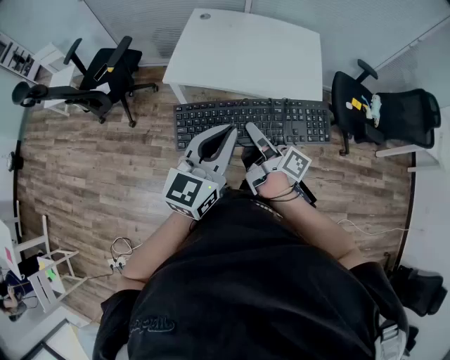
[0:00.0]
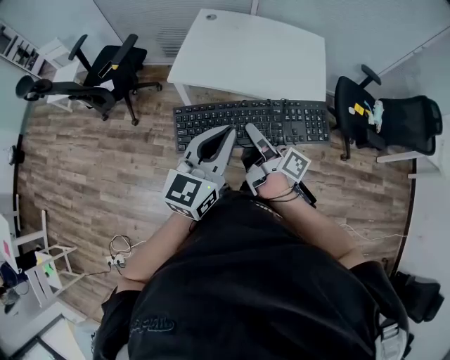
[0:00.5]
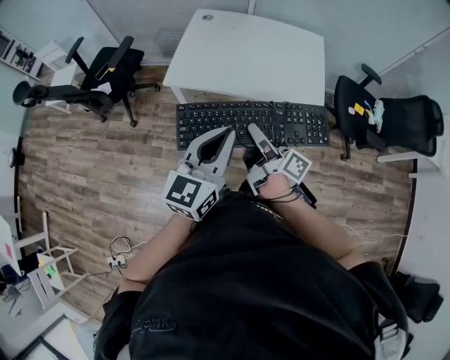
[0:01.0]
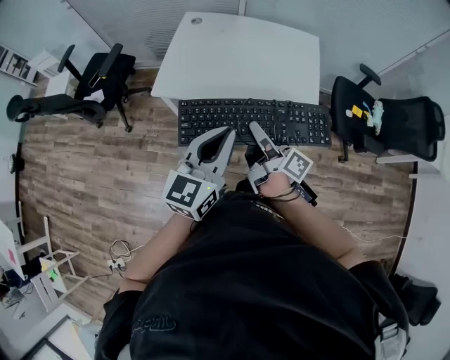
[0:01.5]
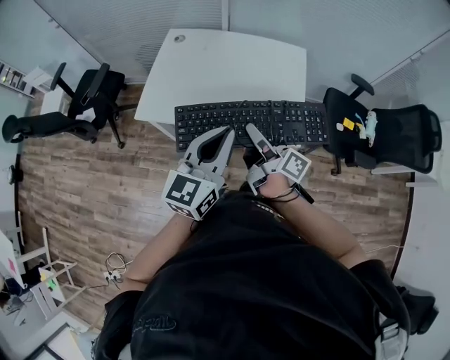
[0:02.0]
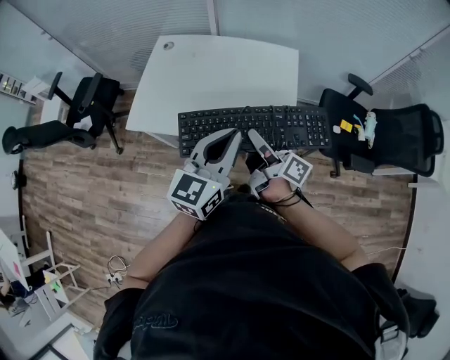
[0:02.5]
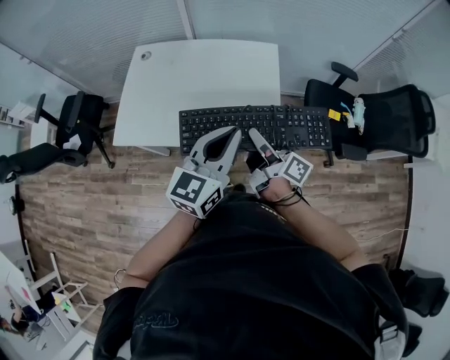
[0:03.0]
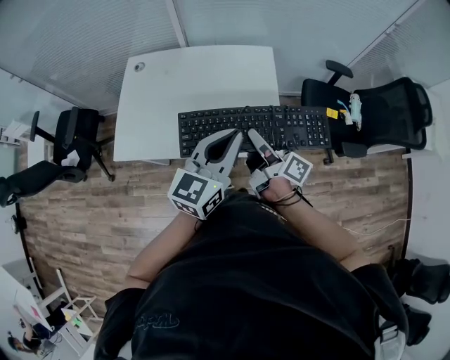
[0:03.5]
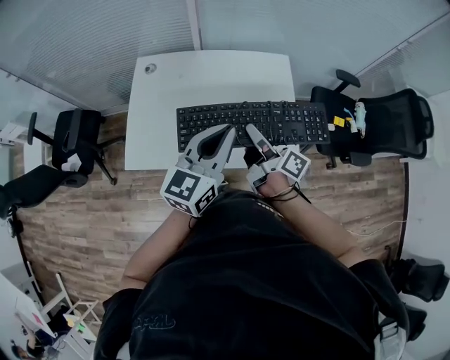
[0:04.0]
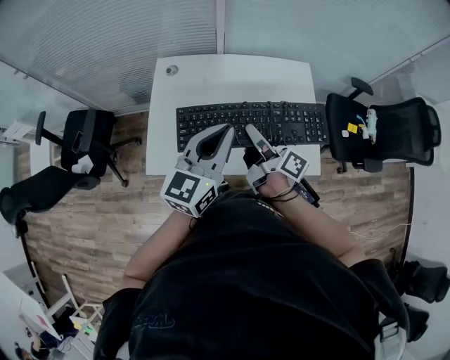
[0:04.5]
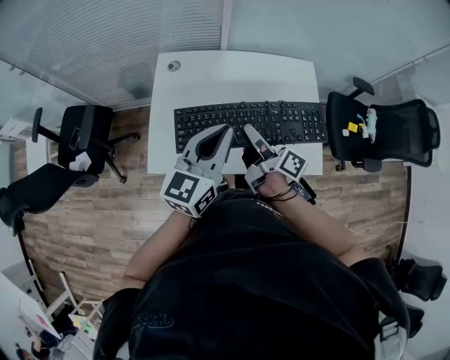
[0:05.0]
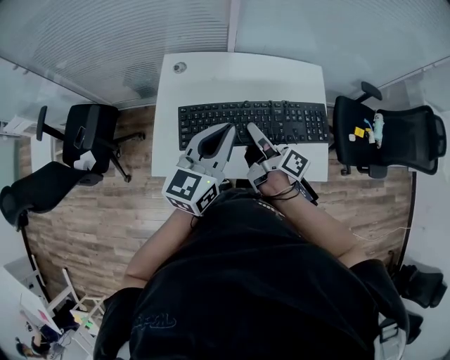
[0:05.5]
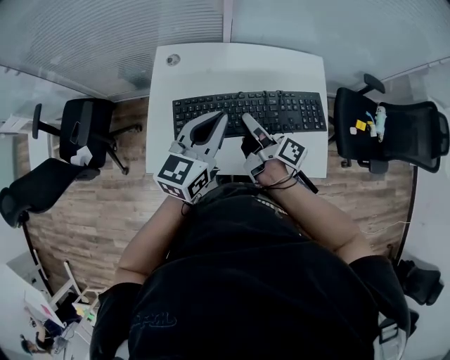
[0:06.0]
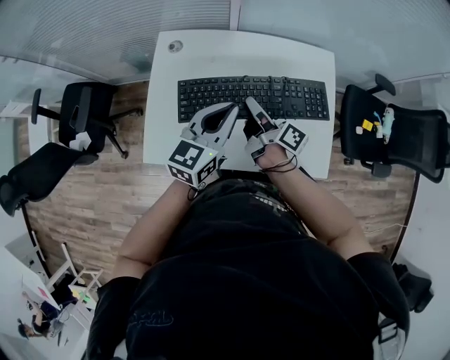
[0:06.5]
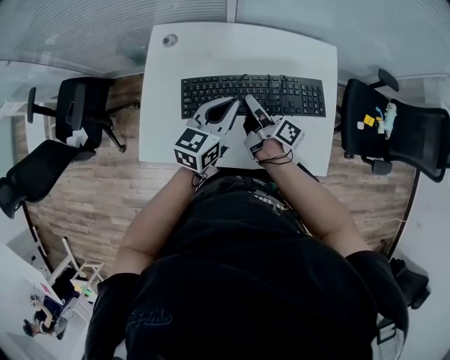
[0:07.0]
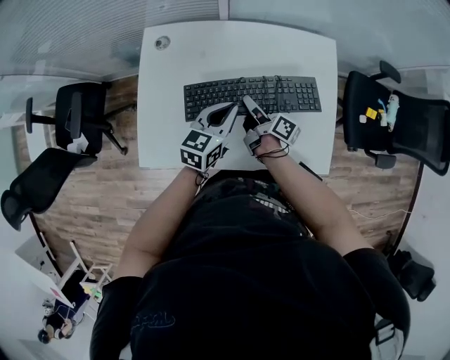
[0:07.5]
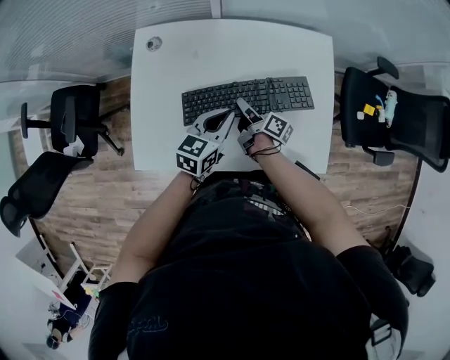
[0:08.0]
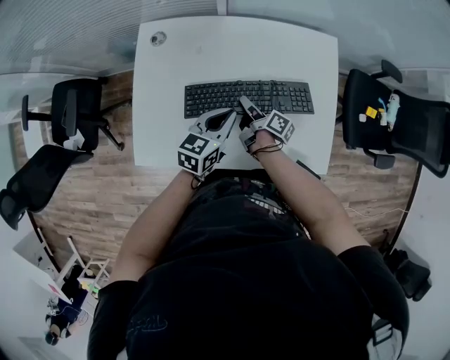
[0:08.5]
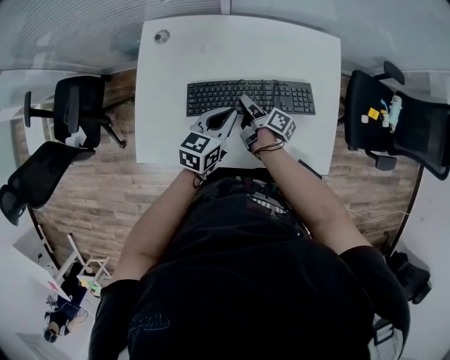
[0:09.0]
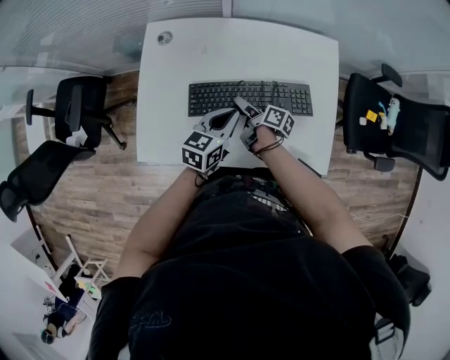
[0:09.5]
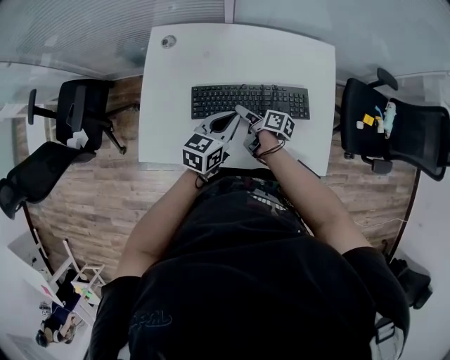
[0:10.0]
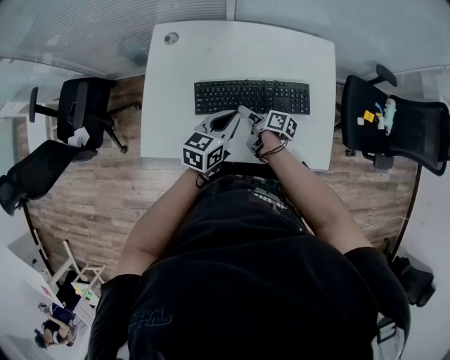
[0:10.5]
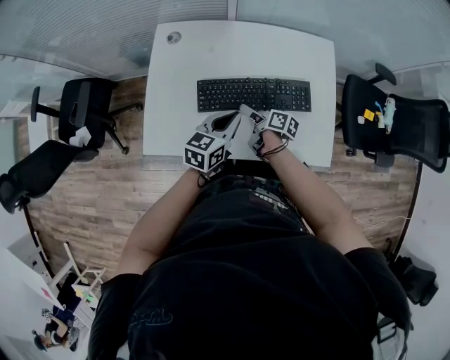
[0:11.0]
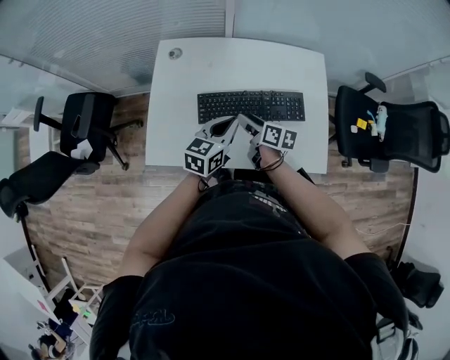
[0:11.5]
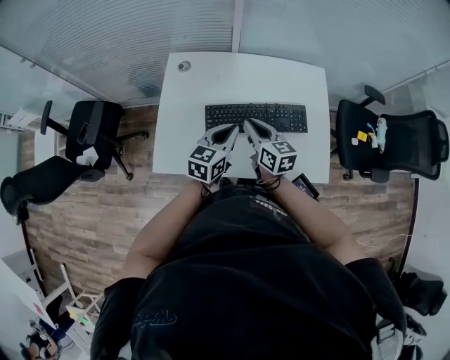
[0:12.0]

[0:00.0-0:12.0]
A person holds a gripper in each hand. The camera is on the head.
0:00.0 to 0:02.0: Both grippers move forward and to the right, approximately 20 cm.
0:02.0 to 0:04.0: Both grippers move forward, about 15 cm.
0:04.0 to 0:06.0: The right gripper travels to the left, forward and downward by approximately 15 cm; the left gripper is displaced to the left and forward by approximately 15 cm.
0:06.0 to 0:08.0: The two grippers go some 20 cm downward.
0:08.0 to 0:10.0: The right gripper opens its fingers.
0:10.0 to 0:12.0: The right gripper goes approximately 20 cm upward, rotates around the line of its fingers by approximately 60 degrees, counterclockwise from behind, and closes; the left gripper heads upward, covering roughly 5 cm.

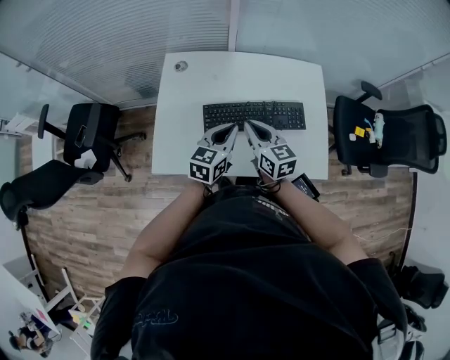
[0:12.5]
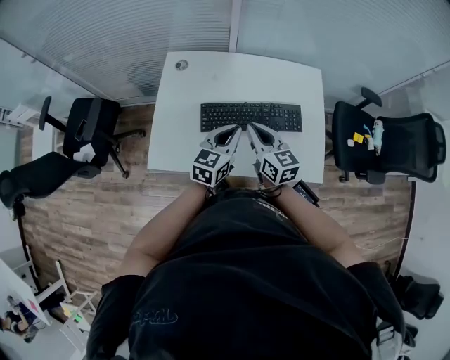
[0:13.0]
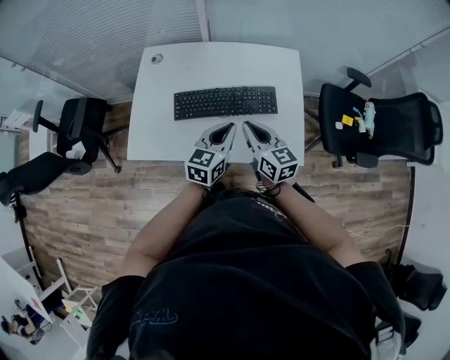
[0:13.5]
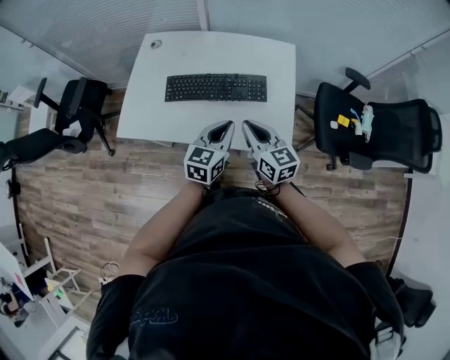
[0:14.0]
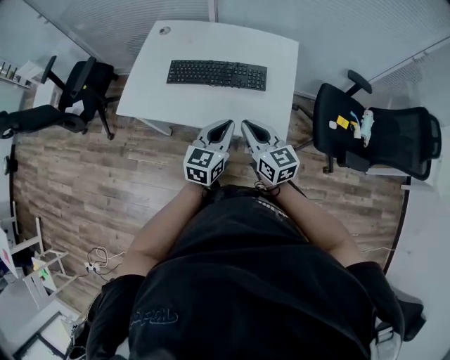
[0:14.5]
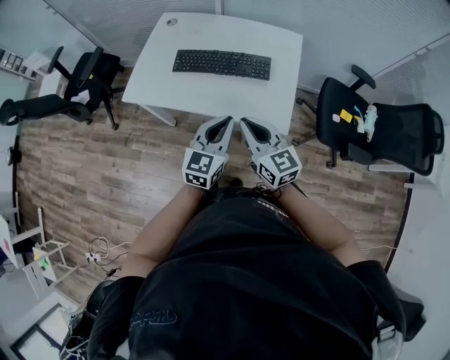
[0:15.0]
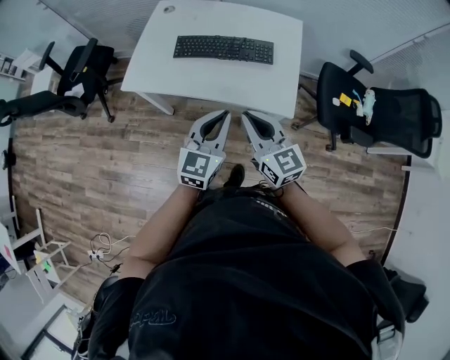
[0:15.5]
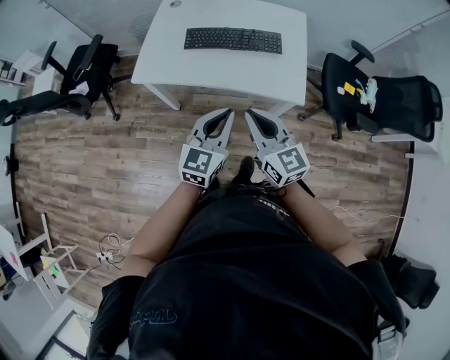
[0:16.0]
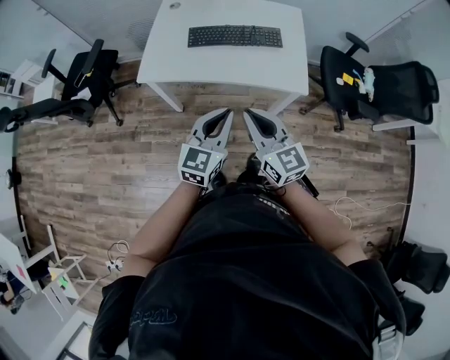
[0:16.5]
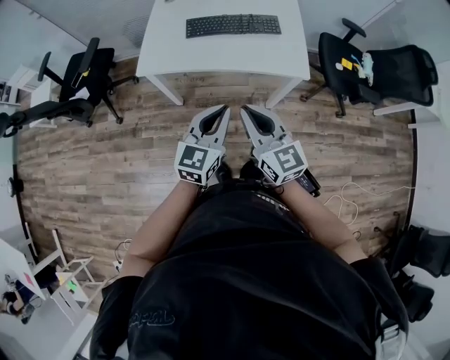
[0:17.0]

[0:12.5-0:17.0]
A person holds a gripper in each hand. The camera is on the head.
0:12.5 to 0:14.5: The left gripper is displaced to the right and backward by approximately 25 cm, while the right gripper travels backward and to the right by about 25 cm.
0:14.5 to 0:17.0: The left gripper is displaced backward and to the left by some 25 cm; the right gripper shifts some 25 cm backward, to the left and upward.

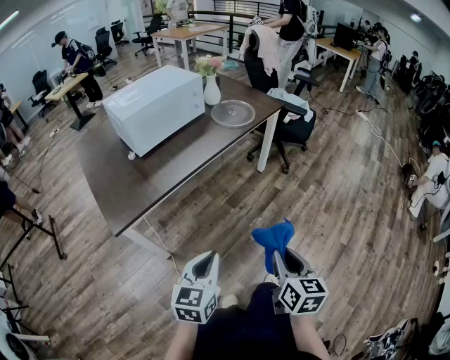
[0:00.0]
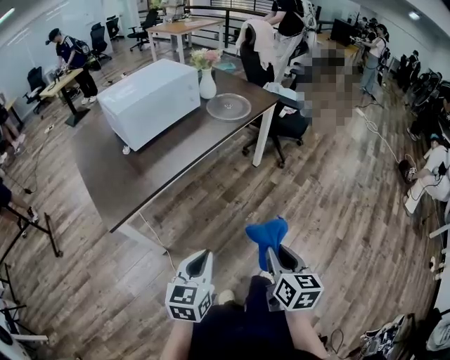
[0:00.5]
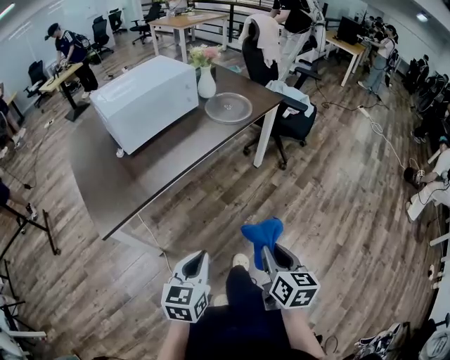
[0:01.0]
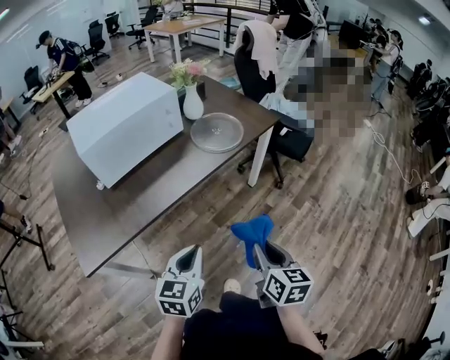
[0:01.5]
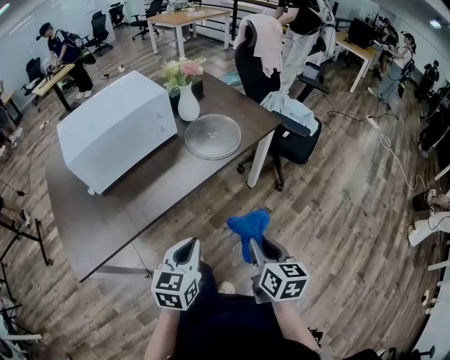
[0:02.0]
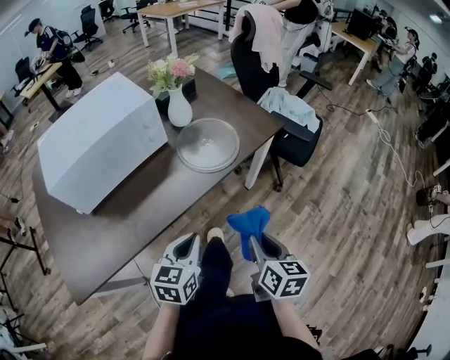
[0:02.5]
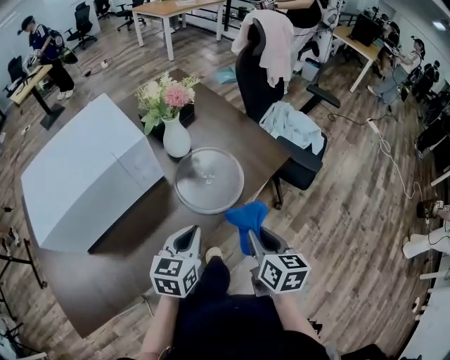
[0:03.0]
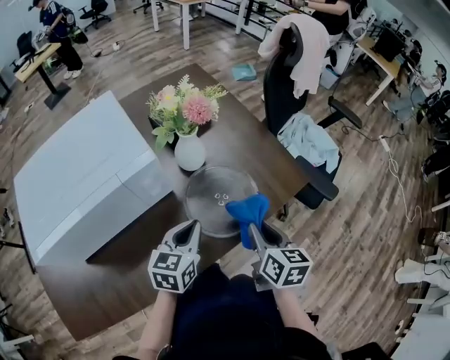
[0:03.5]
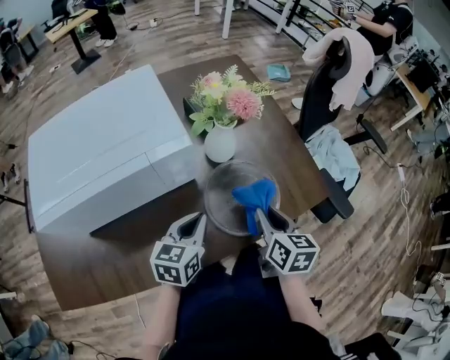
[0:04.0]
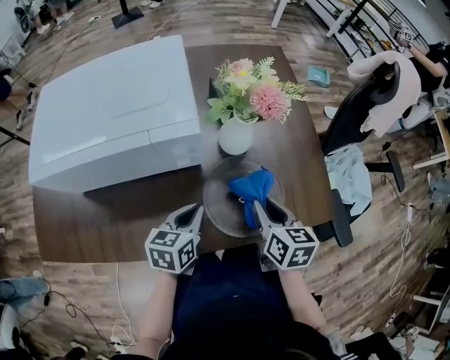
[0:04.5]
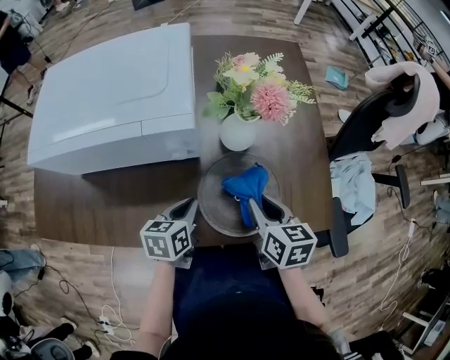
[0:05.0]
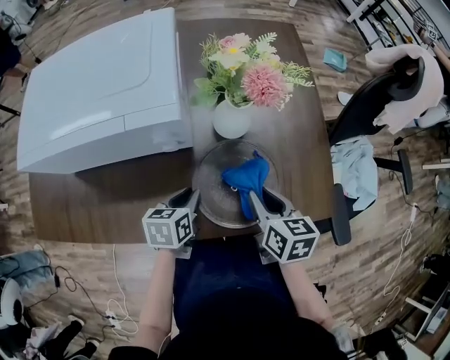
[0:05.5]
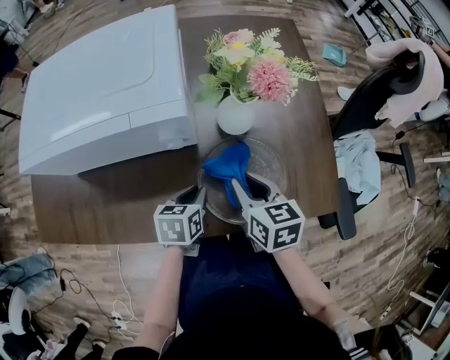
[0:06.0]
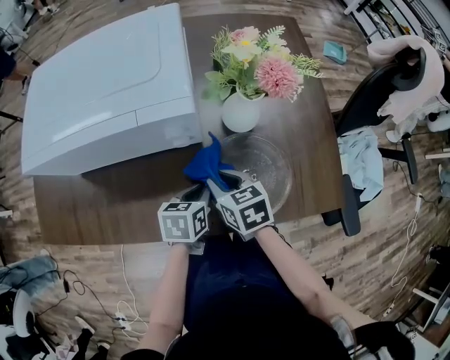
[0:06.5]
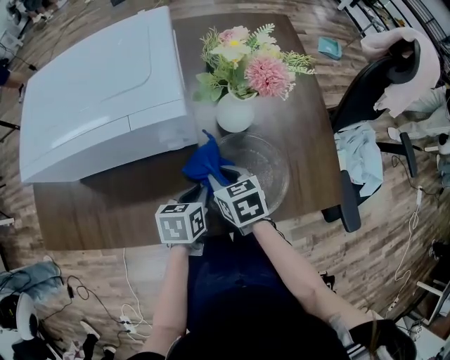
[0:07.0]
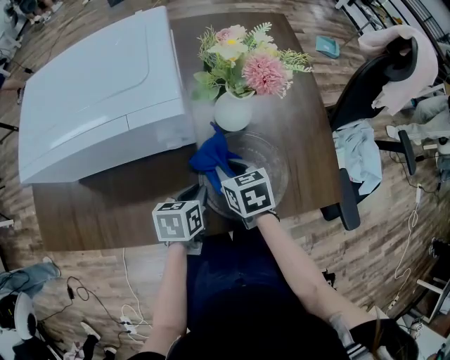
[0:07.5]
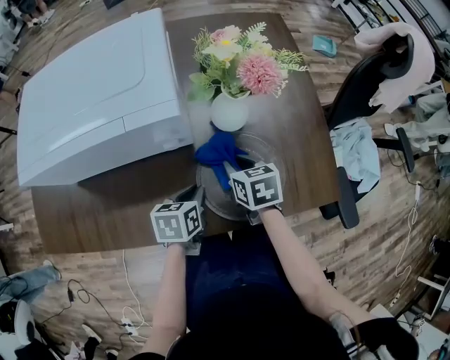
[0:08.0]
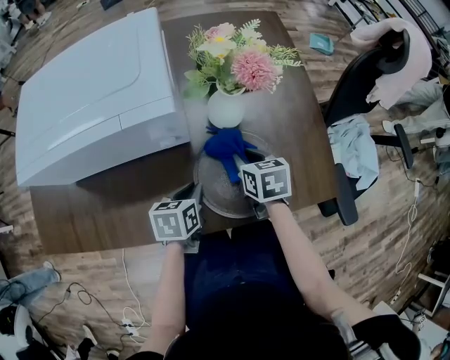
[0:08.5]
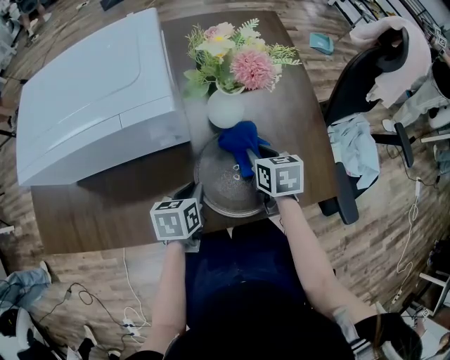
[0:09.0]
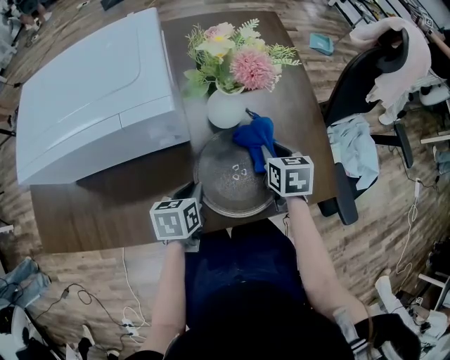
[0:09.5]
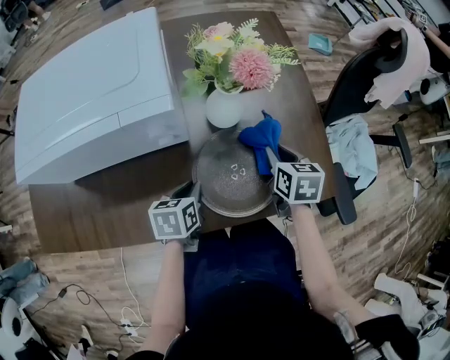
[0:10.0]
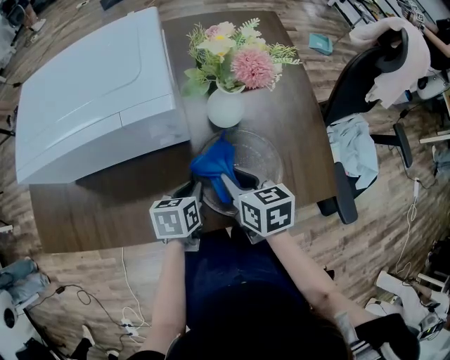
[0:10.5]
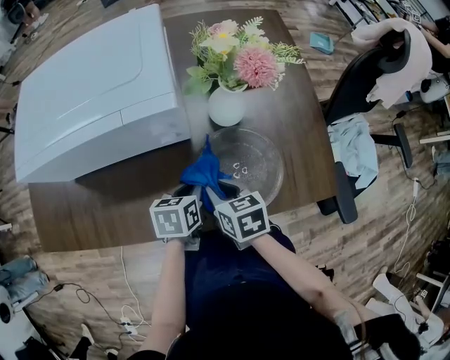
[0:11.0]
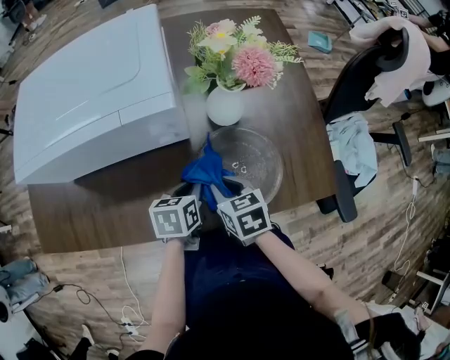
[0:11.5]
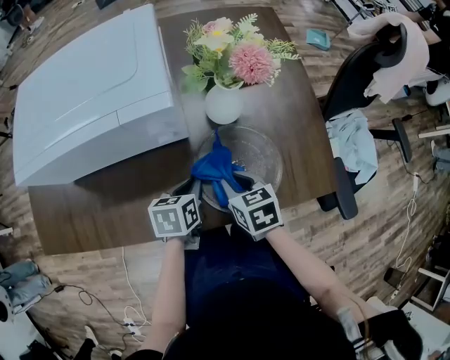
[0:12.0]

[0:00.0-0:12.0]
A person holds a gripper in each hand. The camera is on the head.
0:00.0 to 0:02.0: Both grippers move forward, some 35 cm.
0:02.0 to 0:04.0: The two grippers travel together, forward, some 40 cm.
0:04.0 to 0:06.0: The right gripper heads forward, covering approximately 5 cm, and swivels roughly 30 degrees. Meanwhile the left gripper goes roughly 10 cm downward, and turns by some 30 degrees.
0:06.0 to 0:08.0: The right gripper heads downward, covering approximately 5 cm, and travels to the left and back again, some 10 cm each way.
0:08.0 to 0:10.0: The right gripper is displaced to the right by about 15 cm.
0:10.0 to 0:12.0: The right gripper is displaced to the left and backward by about 15 cm, and rotates some 20 degrees.
